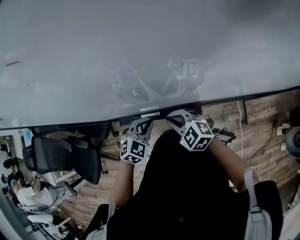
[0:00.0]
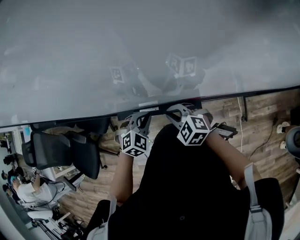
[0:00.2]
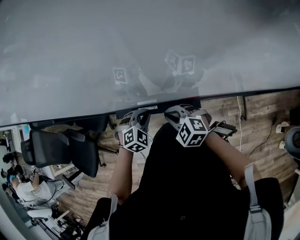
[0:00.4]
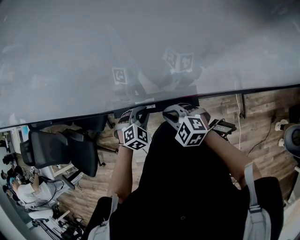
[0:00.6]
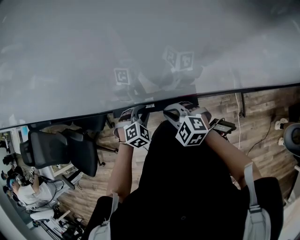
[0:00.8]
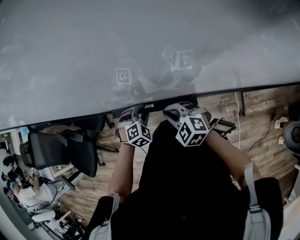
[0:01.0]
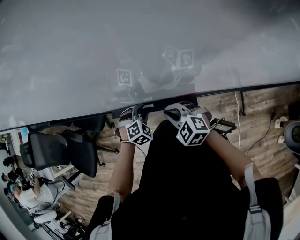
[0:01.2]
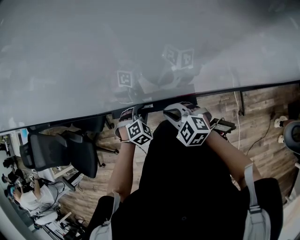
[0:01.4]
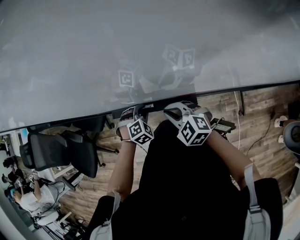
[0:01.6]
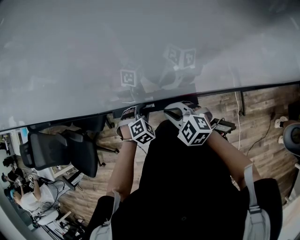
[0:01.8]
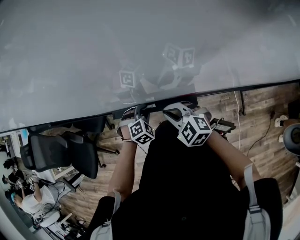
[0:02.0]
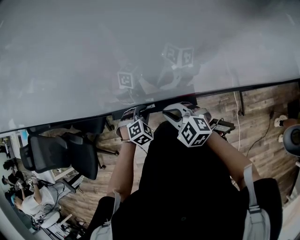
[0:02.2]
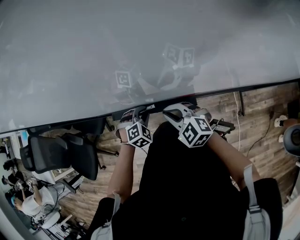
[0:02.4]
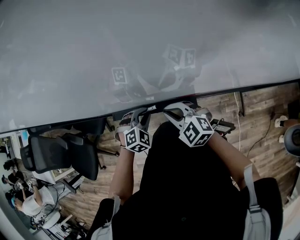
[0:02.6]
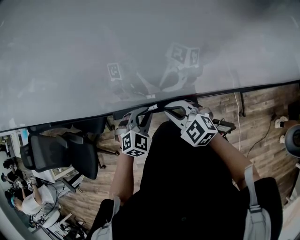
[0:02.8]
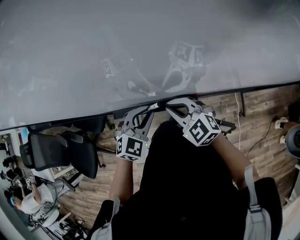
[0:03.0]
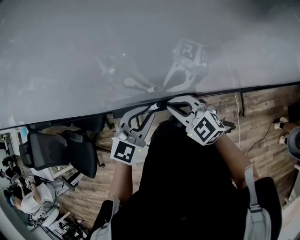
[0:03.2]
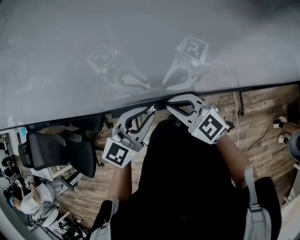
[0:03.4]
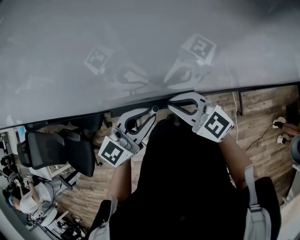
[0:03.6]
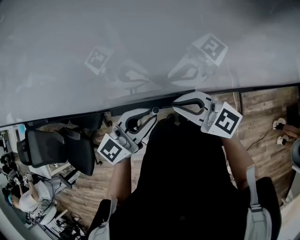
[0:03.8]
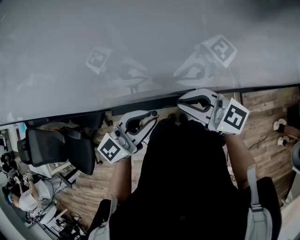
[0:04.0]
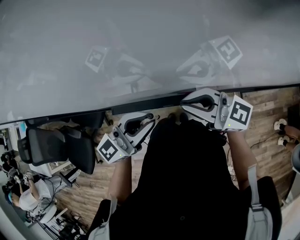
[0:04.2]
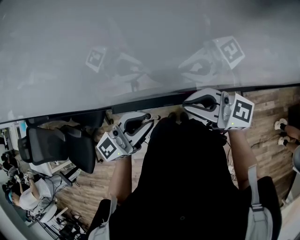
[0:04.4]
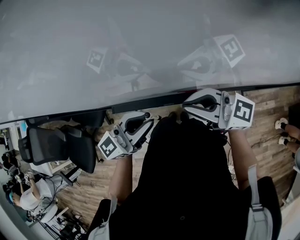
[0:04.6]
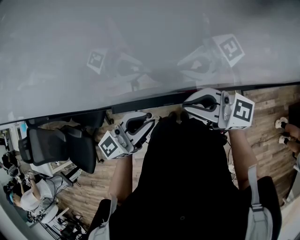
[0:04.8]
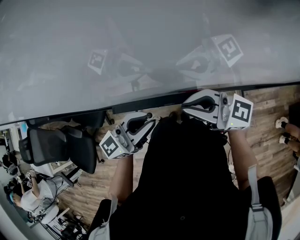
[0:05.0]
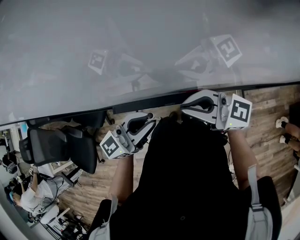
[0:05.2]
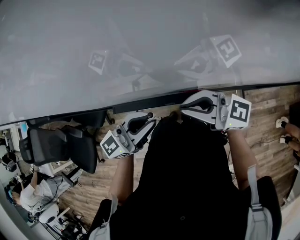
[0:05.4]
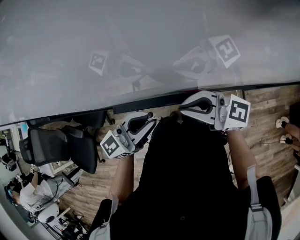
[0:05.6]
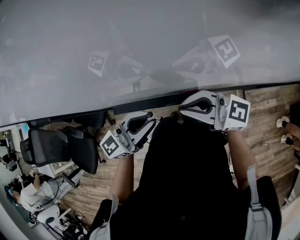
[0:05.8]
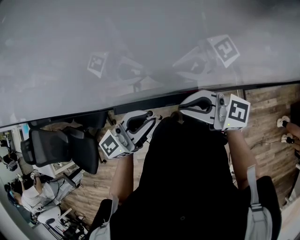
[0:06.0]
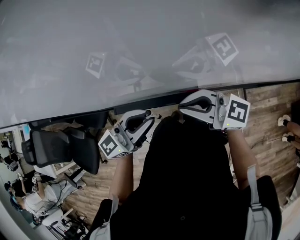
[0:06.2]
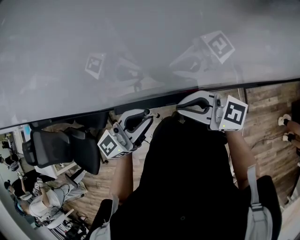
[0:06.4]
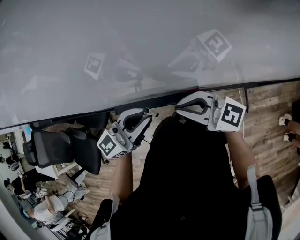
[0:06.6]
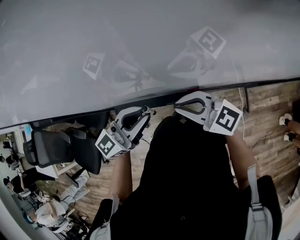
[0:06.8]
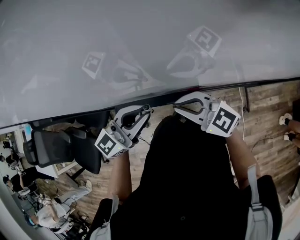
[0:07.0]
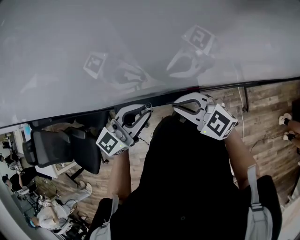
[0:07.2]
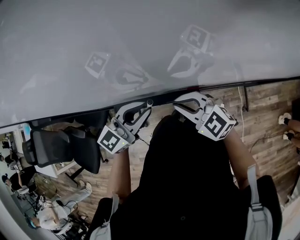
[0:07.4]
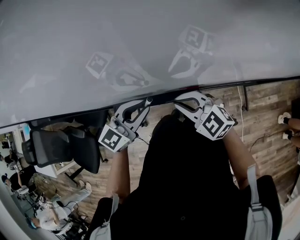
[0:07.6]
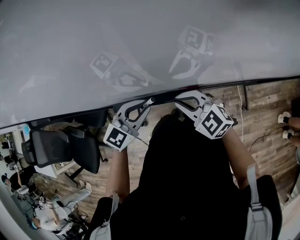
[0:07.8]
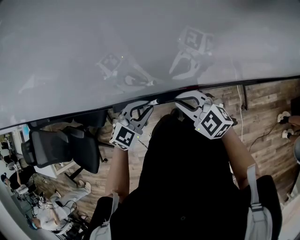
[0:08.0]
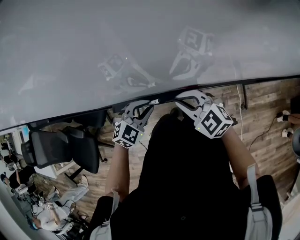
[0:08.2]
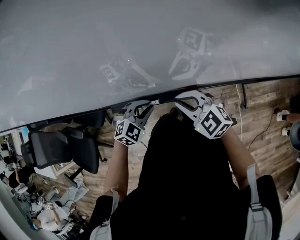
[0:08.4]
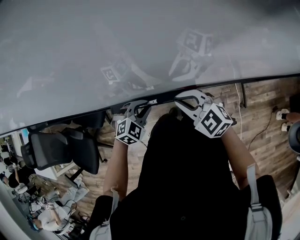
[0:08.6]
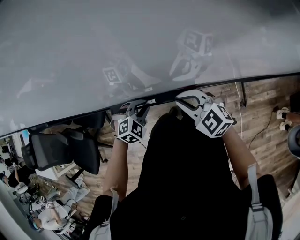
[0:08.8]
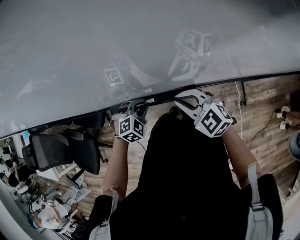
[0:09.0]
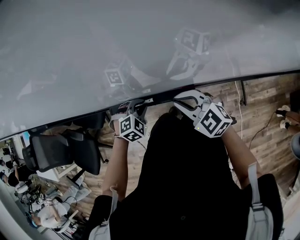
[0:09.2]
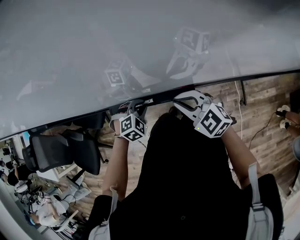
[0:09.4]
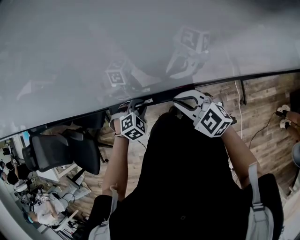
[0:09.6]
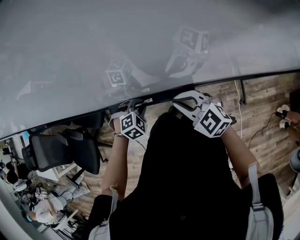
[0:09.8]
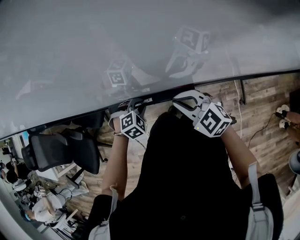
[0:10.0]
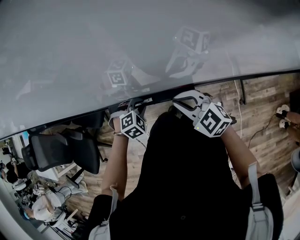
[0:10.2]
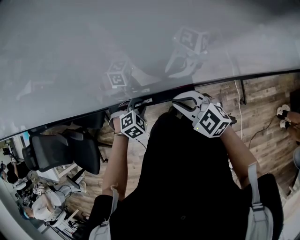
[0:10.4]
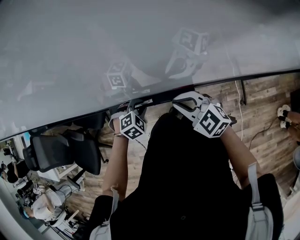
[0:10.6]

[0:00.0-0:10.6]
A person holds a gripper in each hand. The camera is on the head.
0:00.0 to 0:01.6: The left gripper goes roughly 10 cm downward, and turns by some 30 degrees.
0:01.6 to 0:03.0: The right gripper goes some 5 cm upward; the left gripper is displaced upward by some 15 cm, and rotates about 30 degrees.
0:03.0 to 0:04.6: Both grippers move upward, some 10 cm. The right gripper points its fingers roughly 30 degrees further upward. Meanwhile the left gripper tips its fingers upward by some 50 degrees.
0:04.6 to 0:06.0: The grippers stay close to where they were, moving slightly.
0:06.0 to 0:07.6: The left gripper goes about 5 cm downward, and swivels some 20 degrees. The right gripper moves downward, some 10 cm, and tips its fingers downward by some 30 degrees.
0:07.6 to 0:09.0: The left gripper shifts approximately 20 cm downward, and tilts its fingers roughly 50 degrees downward.
0:09.0 to 0:10.6: The grippers make only small movements.

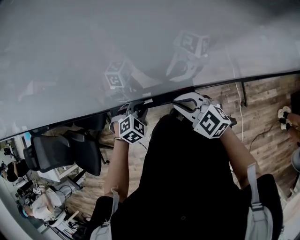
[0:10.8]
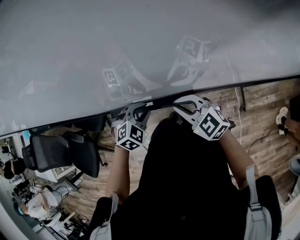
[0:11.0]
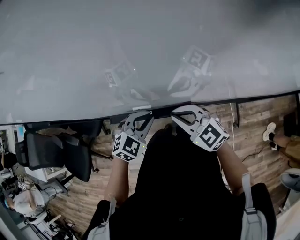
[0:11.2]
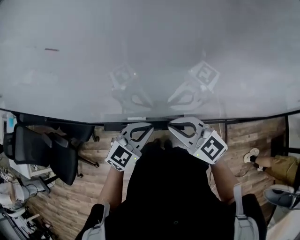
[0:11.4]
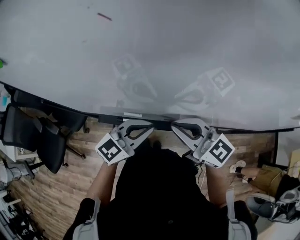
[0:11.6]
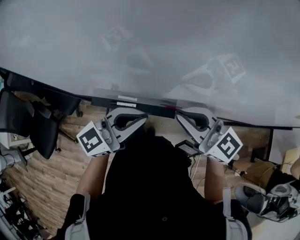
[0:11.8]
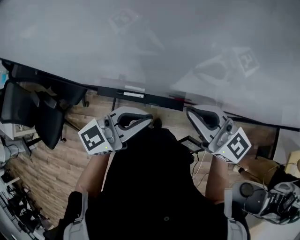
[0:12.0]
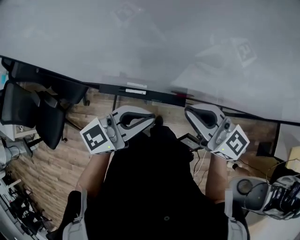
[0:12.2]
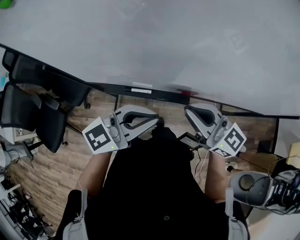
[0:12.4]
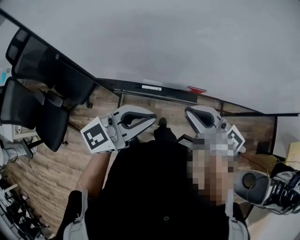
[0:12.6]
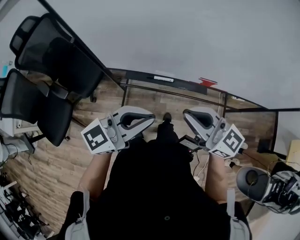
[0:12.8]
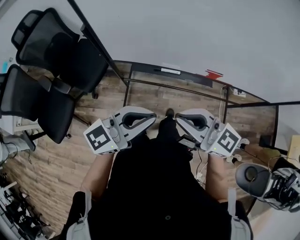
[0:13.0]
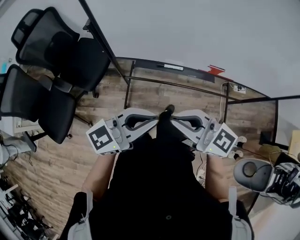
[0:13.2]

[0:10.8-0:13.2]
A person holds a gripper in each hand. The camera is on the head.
0:10.8 to 0:12.0: The right gripper heads upward, covering some 15 cm, and changes its angle by some 30 degrees; the left gripper shifts roughly 25 cm upward, and tips its fingers upward by approximately 70 degrees.
0:12.0 to 0:13.2: The left gripper shifts by roughly 25 cm. The right gripper ends up about 35 cm from where it was.

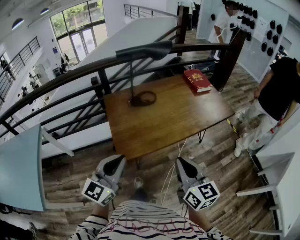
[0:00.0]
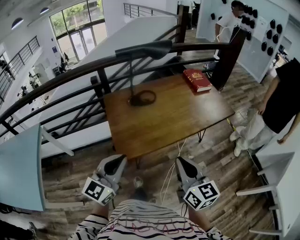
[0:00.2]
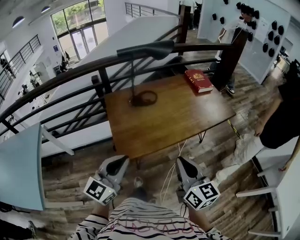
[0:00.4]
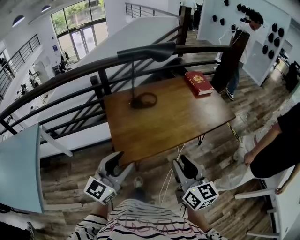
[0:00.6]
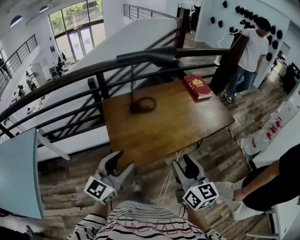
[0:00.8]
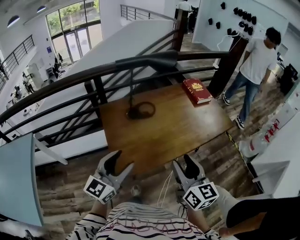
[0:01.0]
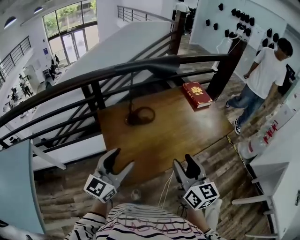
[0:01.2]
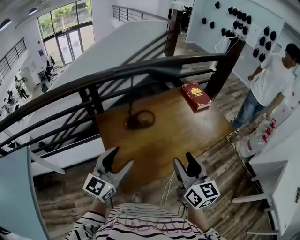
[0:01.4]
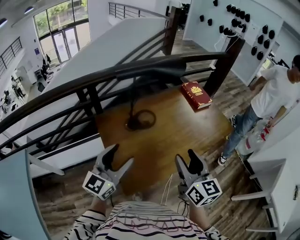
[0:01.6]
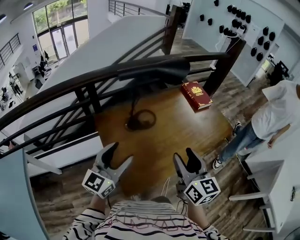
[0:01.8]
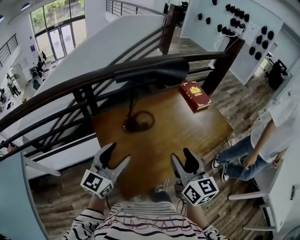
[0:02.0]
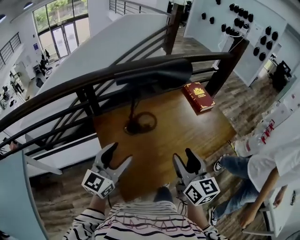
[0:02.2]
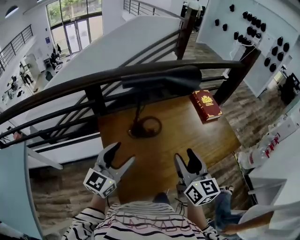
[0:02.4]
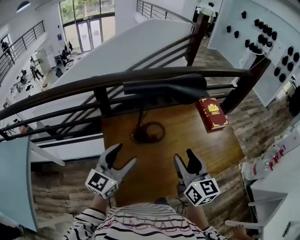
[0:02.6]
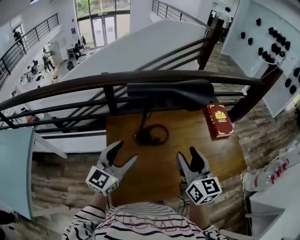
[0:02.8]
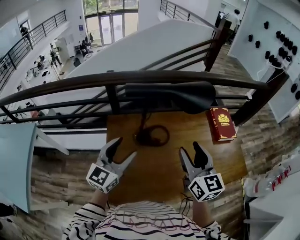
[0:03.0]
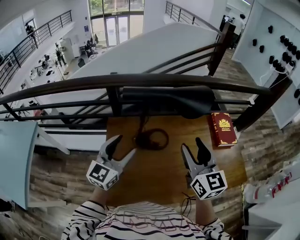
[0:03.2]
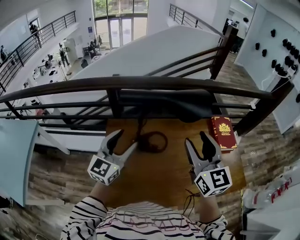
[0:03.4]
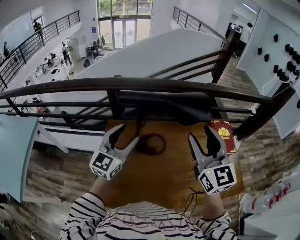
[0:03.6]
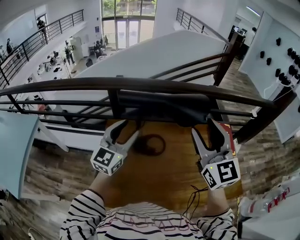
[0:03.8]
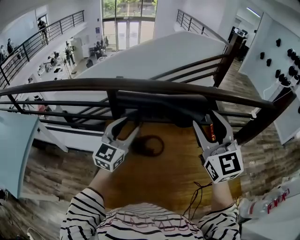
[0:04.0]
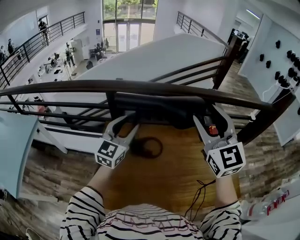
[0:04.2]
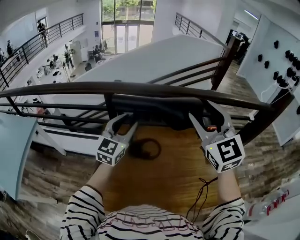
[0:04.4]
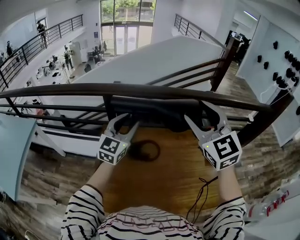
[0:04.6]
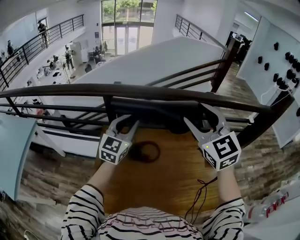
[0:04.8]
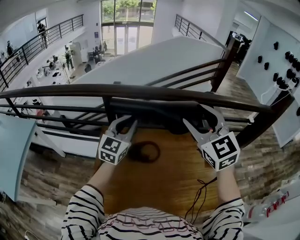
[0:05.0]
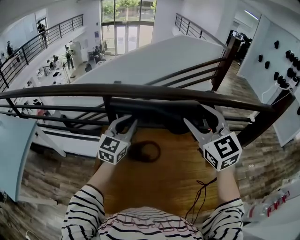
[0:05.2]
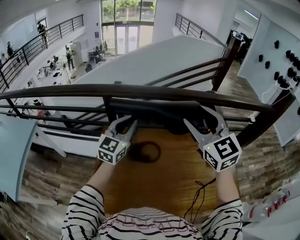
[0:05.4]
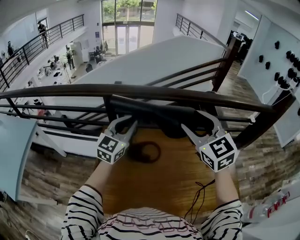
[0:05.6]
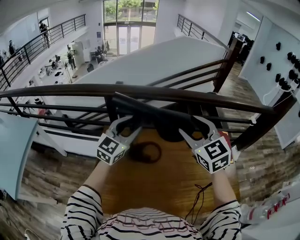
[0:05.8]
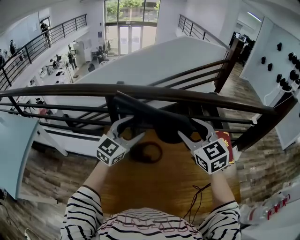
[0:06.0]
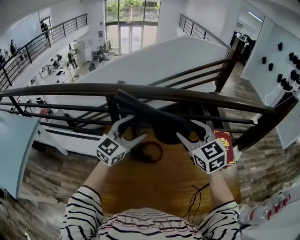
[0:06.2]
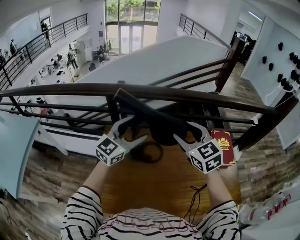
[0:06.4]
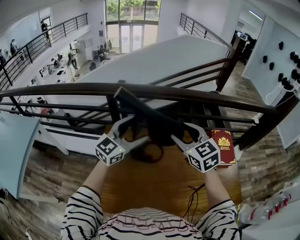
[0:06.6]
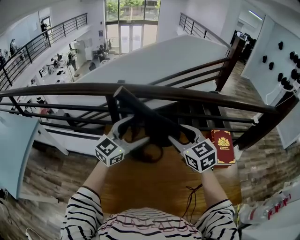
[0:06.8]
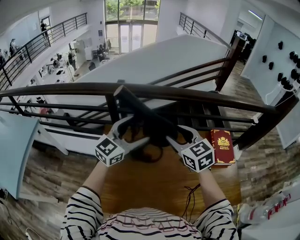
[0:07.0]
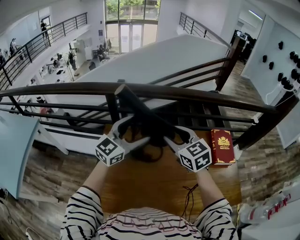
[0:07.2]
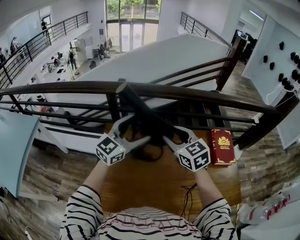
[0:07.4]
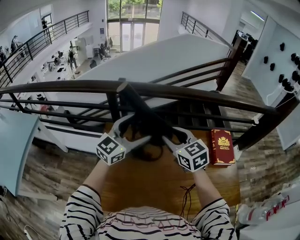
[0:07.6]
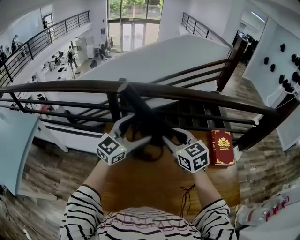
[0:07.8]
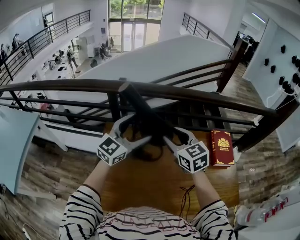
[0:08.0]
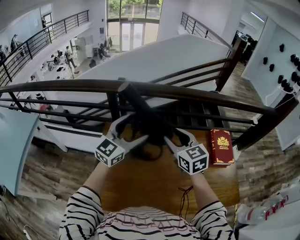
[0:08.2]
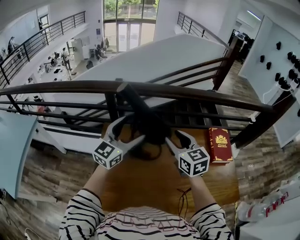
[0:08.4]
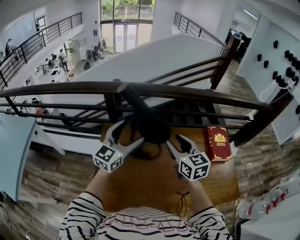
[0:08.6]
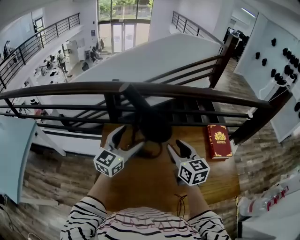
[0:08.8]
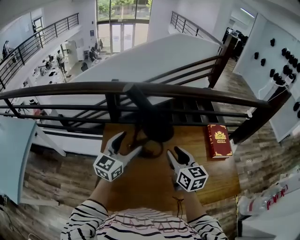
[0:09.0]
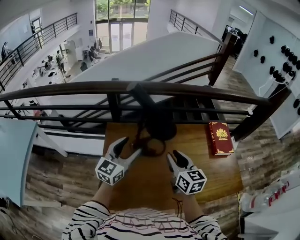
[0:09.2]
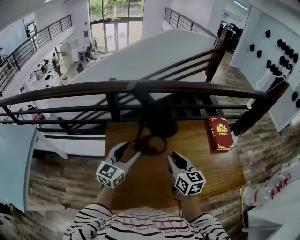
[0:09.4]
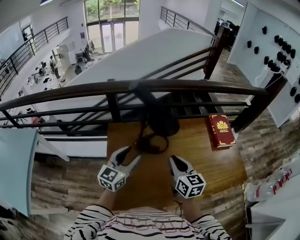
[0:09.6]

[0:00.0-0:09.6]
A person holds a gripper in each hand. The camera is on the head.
0:00.0 to 0:01.6: Both grippers move forward and to the left, some 30 cm. The left gripper opens its fingers; the right gripper opens its fingers.
0:01.6 to 0:03.2: Both grippers move forward, approximately 25 cm. The right gripper swivels about 30 degrees, while the left gripper rotates approximately 20 degrees.
0:03.2 to 0:04.8: The left gripper goes approximately 15 cm forward and to the right, and closes its fingers. The right gripper shifts about 15 cm upward and forward, and turns by about 30 degrees.
0:04.8 to 0:06.4: The left gripper opens. Meanwhile the right gripper goes approximately 10 cm downward.
0:06.4 to 0:08.0: The right gripper changes place by about 5 cm.
0:08.0 to 0:09.6: The right gripper goes roughly 15 cm backward and downward, rotates approximately 30 degrees, and closes its fingers. Meanwhile the left gripper goes roughly 20 cm backward, to the left and downward, and closes.

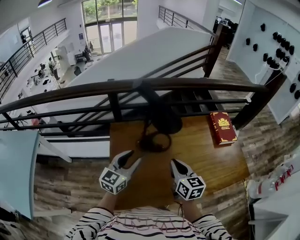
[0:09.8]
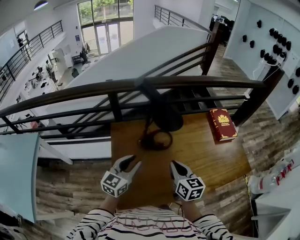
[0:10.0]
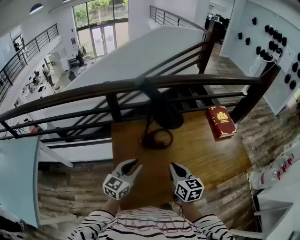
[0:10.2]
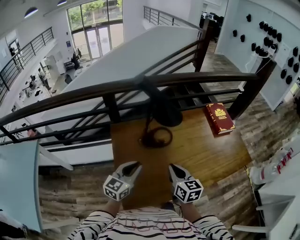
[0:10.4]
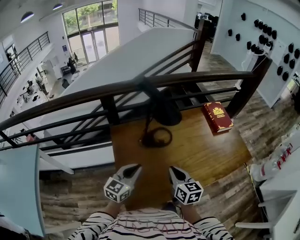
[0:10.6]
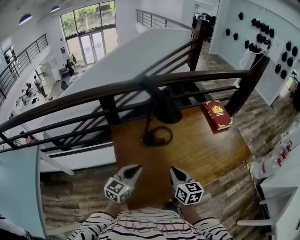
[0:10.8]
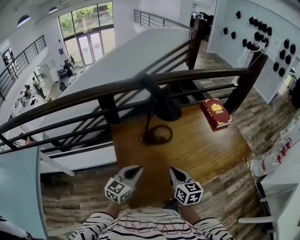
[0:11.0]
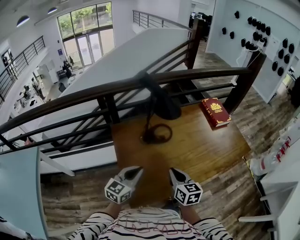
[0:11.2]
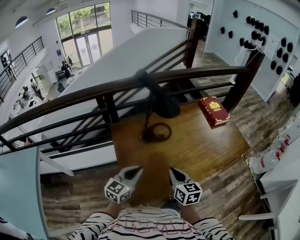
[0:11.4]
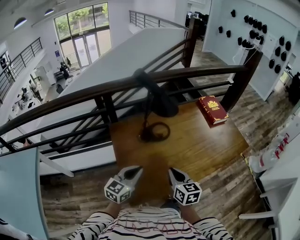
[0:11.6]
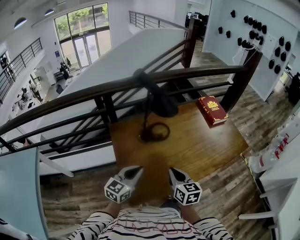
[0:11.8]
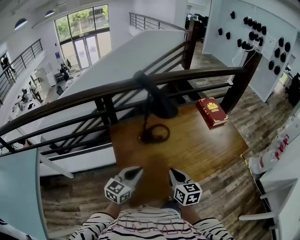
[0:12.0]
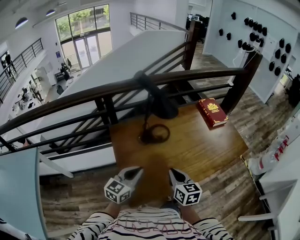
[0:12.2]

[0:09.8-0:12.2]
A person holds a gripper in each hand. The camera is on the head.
0:09.8 to 0:11.0: The left gripper moves backward, roughly 10 cm, and closes up; the right gripper heads backward and to the left, covering about 15 cm.
0:11.0 to 0:12.2: The grippers move only a little.
